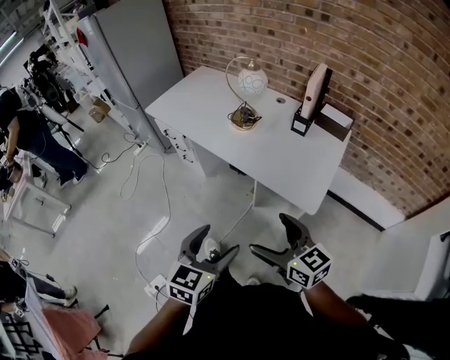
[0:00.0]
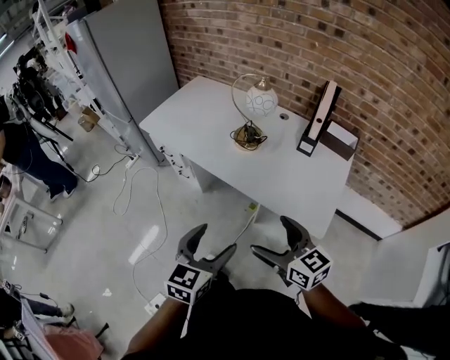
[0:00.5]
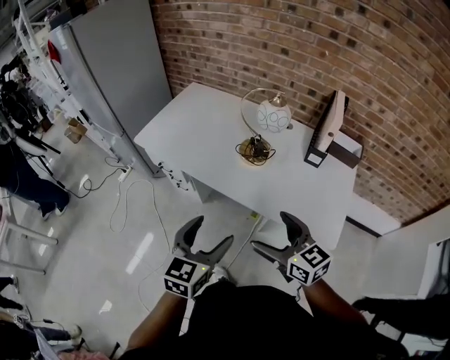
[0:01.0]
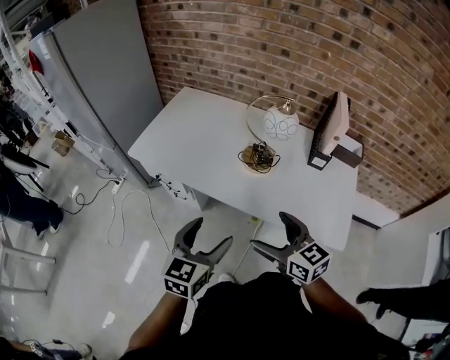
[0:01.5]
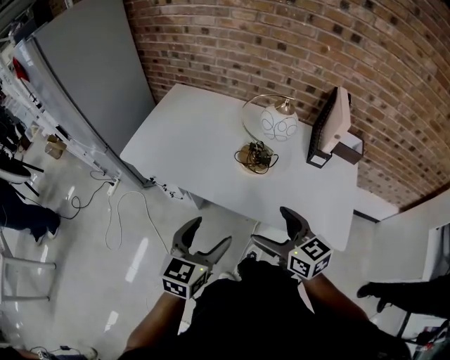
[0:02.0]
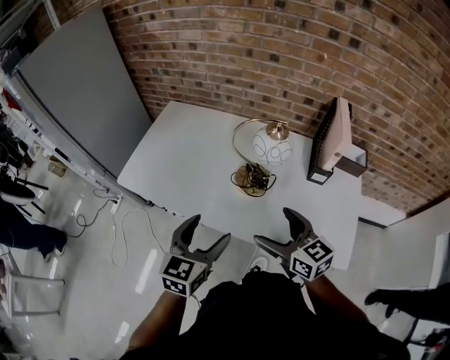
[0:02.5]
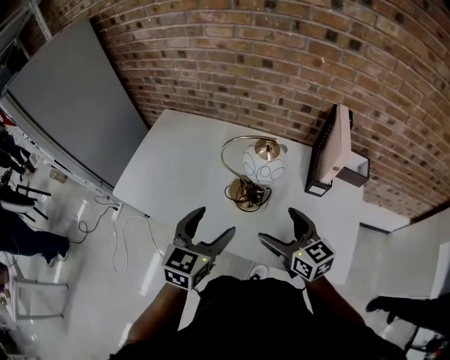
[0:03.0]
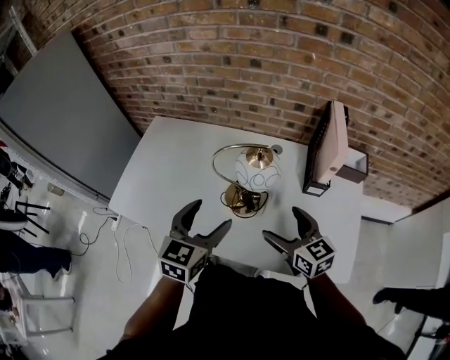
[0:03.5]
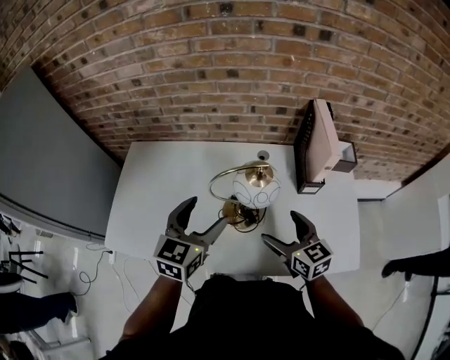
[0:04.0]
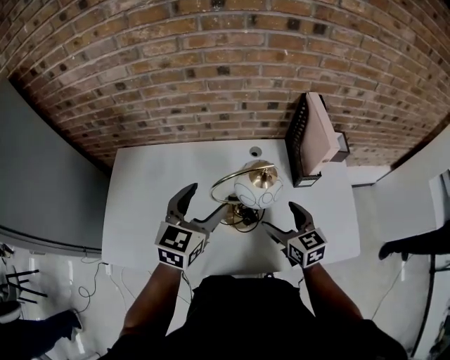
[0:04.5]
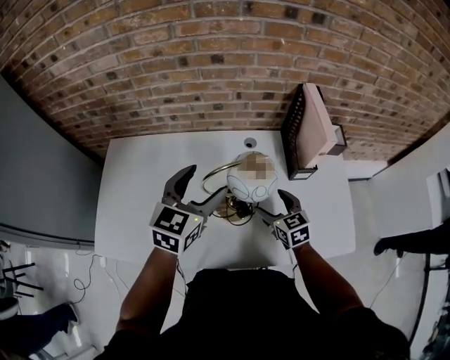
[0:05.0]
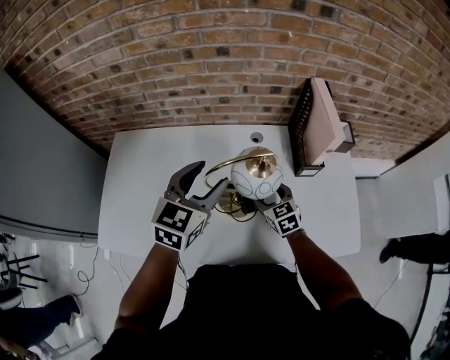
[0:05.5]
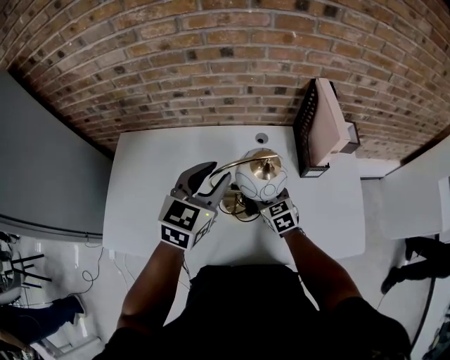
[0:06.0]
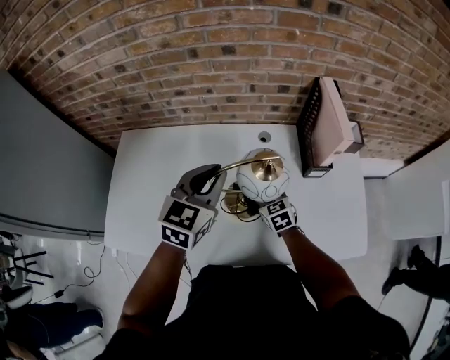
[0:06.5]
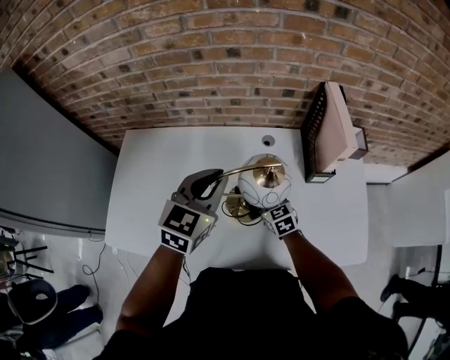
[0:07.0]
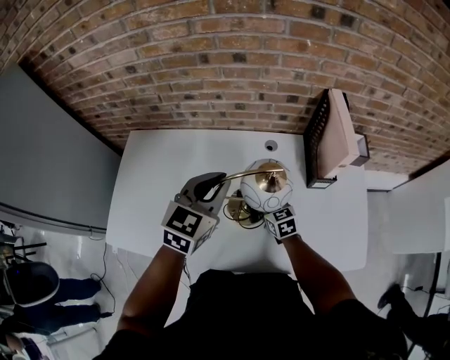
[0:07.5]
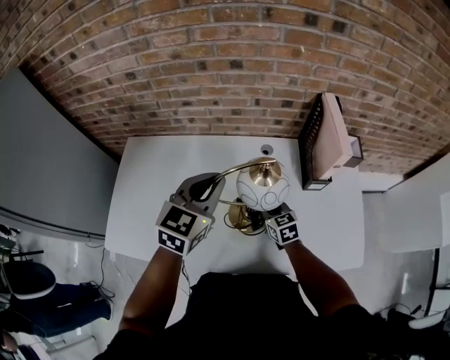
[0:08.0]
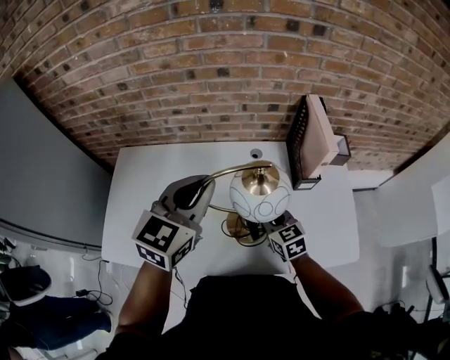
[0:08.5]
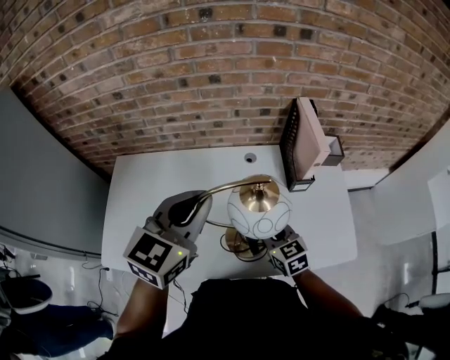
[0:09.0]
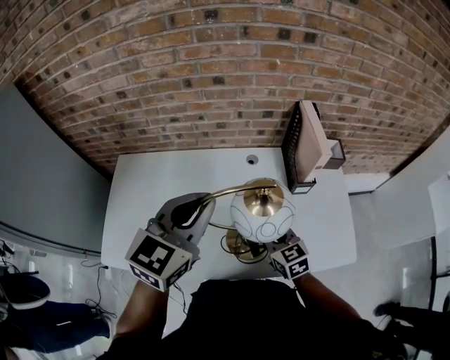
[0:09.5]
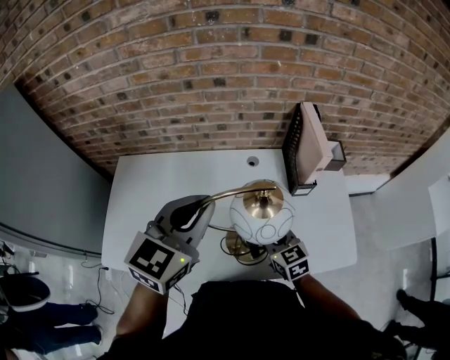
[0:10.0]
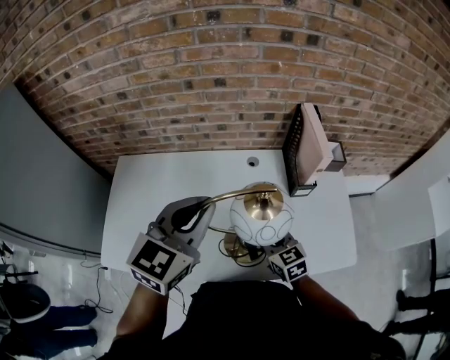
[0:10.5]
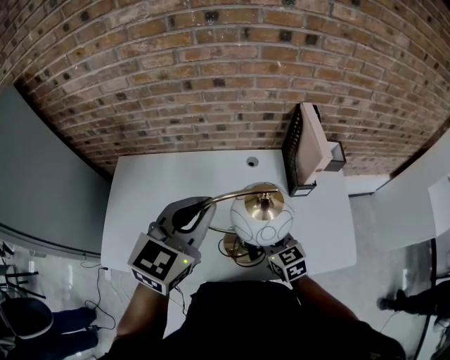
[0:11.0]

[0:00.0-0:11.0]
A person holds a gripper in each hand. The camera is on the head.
0:00.0 to 0:02.0: The two grippers go roughly 35 cm forward and to the left.
0:02.0 to 0:03.5: The right gripper travels forward and to the right by some 20 cm; the left gripper is displaced forward by roughly 25 cm.
0:03.5 to 0:05.5: The right gripper moves downward and forward, about 20 cm, and rotates roughly 30 degrees. The left gripper moves forward, approximately 15 cm.
0:05.5 to 0:07.5: The right gripper shifts by some 5 cm, and closes. Meanwhile the left gripper closes.
0:07.5 to 0:09.0: Both grippers move upward and backward, about 15 cm.
0:09.0 to 0:11.0: Neither gripper changes place.

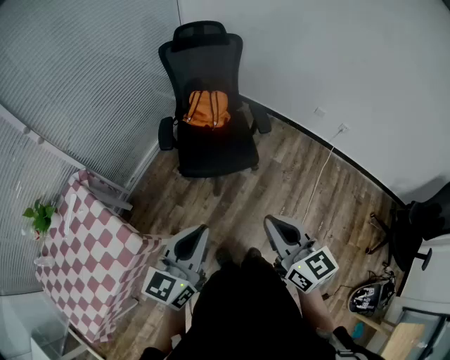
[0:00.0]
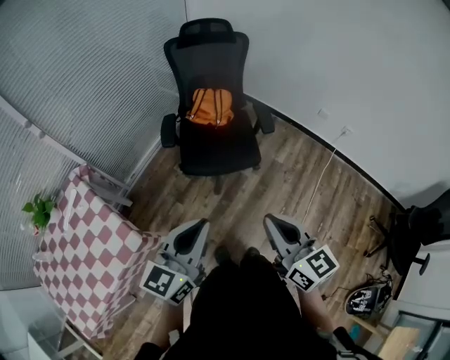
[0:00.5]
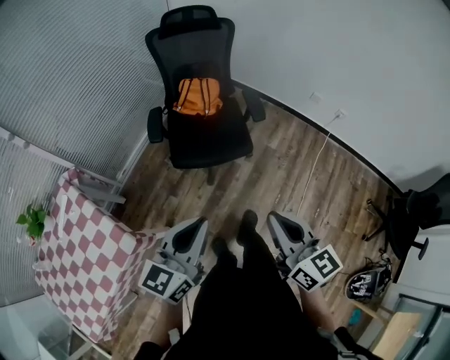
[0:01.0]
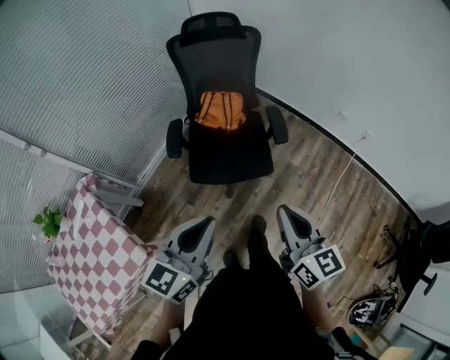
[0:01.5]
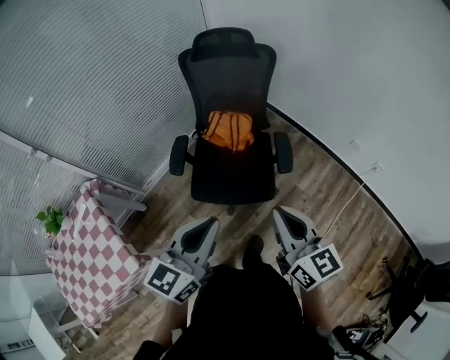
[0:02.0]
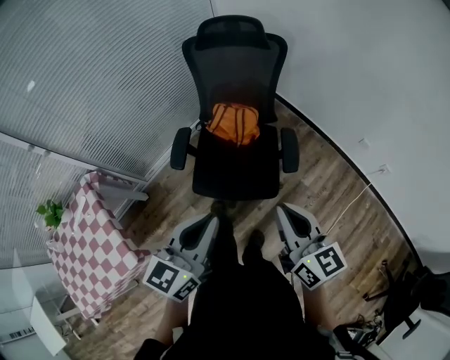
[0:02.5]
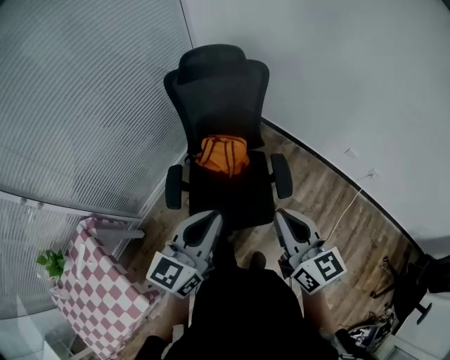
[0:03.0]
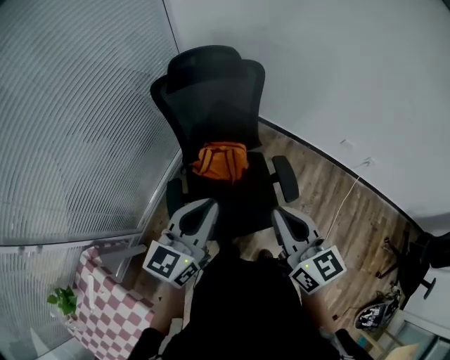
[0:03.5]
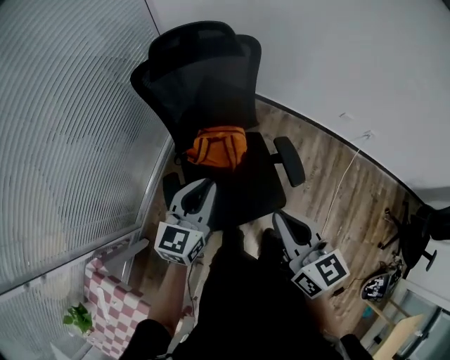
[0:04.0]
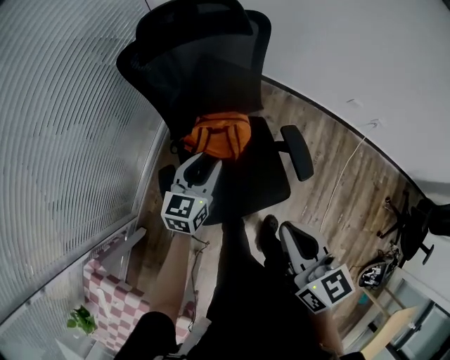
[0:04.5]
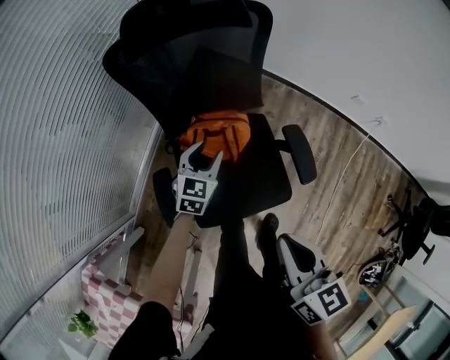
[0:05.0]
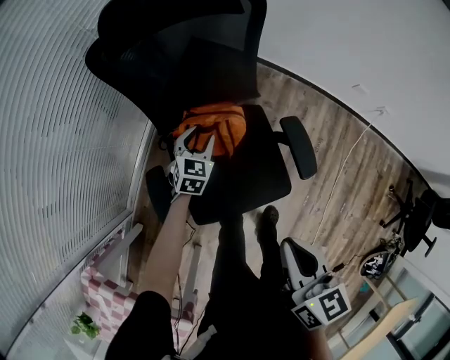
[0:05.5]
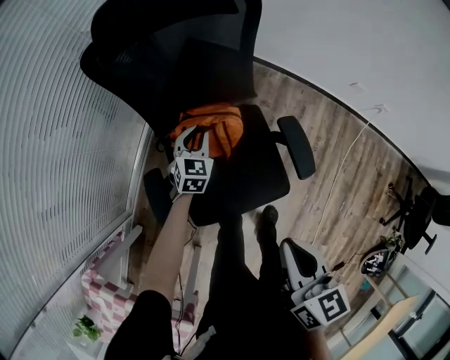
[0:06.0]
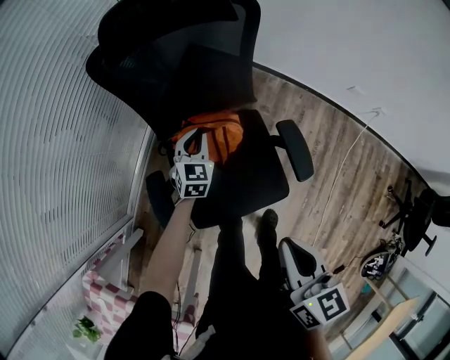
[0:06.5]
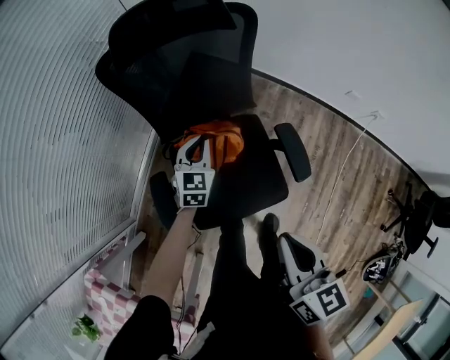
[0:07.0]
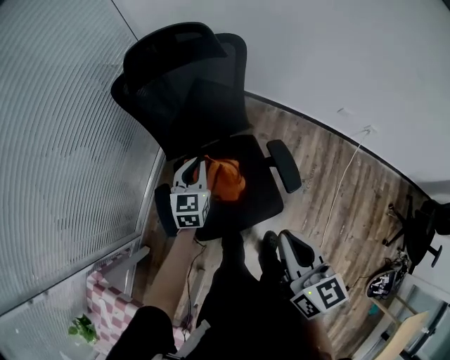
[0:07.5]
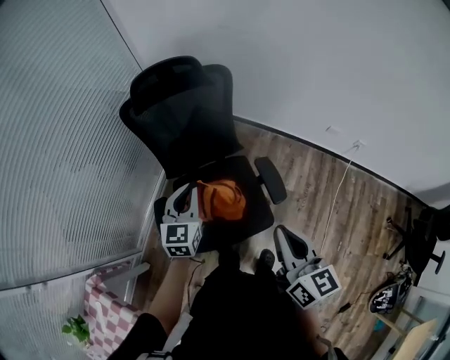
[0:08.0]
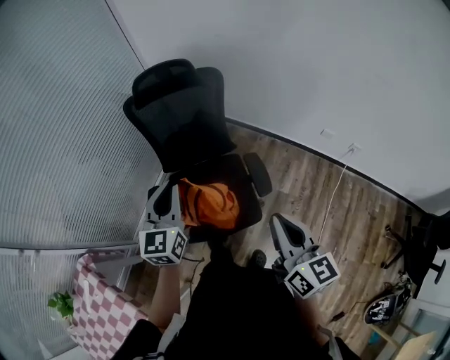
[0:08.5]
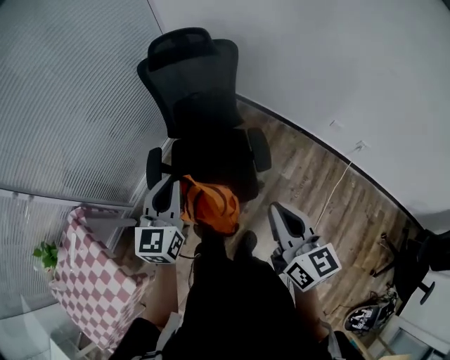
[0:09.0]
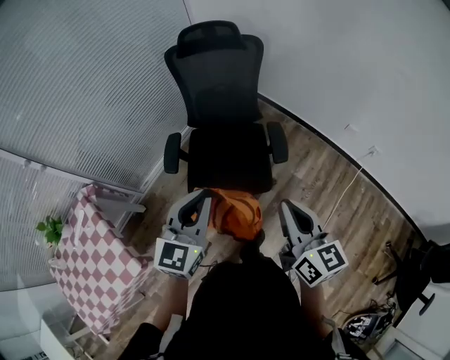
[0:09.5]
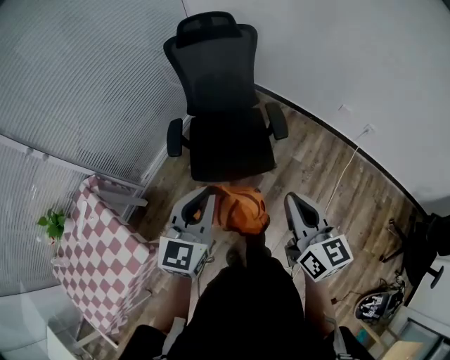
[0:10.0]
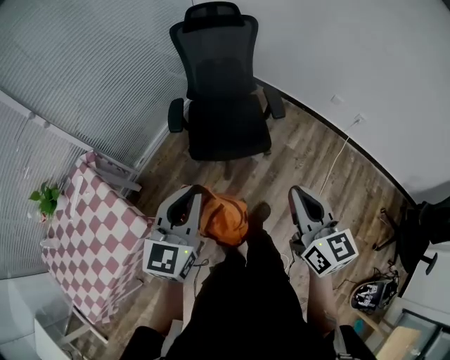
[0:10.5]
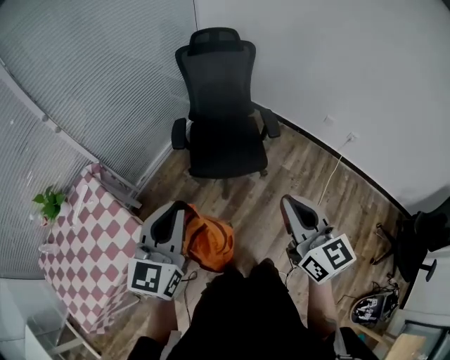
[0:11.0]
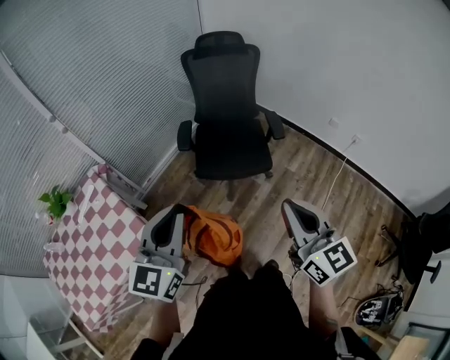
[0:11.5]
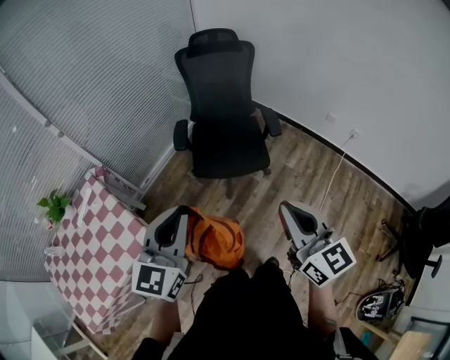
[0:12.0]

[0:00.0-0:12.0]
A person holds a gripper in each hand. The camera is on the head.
0:00.0 to 0:02.0: Both grippers travel together forward, about 25 cm.
0:02.0 to 0:04.0: The left gripper travels forward by some 35 cm, while the right gripper is displaced forward and to the left by approximately 25 cm, and changes its angle by some 20 degrees.
0:04.0 to 0:06.0: The right gripper shifts roughly 10 cm downward. The left gripper is displaced downward and forward by approximately 35 cm, changes its angle by about 30 degrees, and opens, then closes once more.
0:06.0 to 0:08.0: The left gripper goes about 30 cm upward and backward, and swivels some 20 degrees, while the right gripper travels upward and to the right by roughly 15 cm, and changes its angle by about 20 degrees.
0:08.0 to 0:10.0: The left gripper goes some 40 cm backward. The right gripper goes some 30 cm backward.
0:10.0 to 0:12.0: The two grippers go roughly 20 cm backward and to the left.

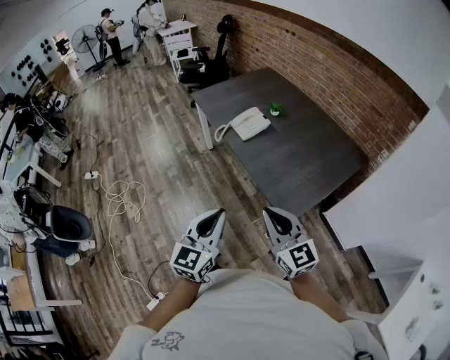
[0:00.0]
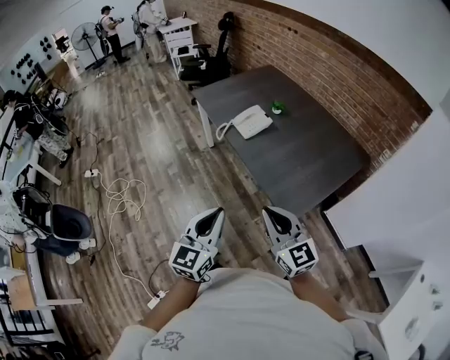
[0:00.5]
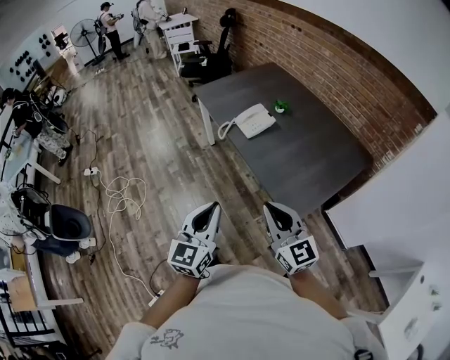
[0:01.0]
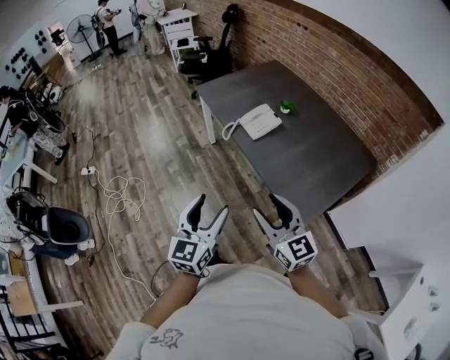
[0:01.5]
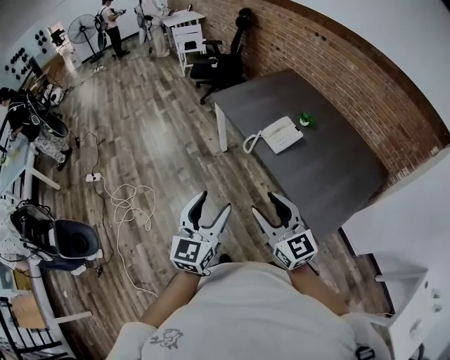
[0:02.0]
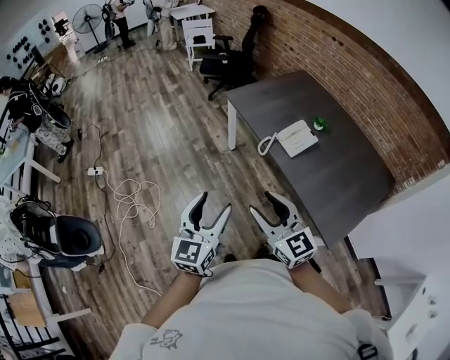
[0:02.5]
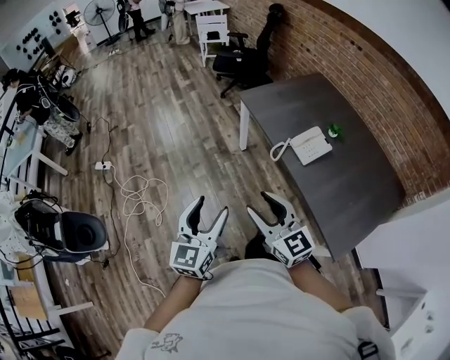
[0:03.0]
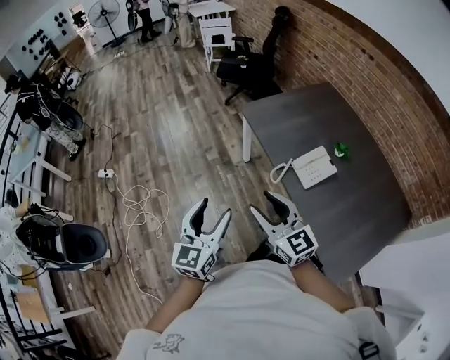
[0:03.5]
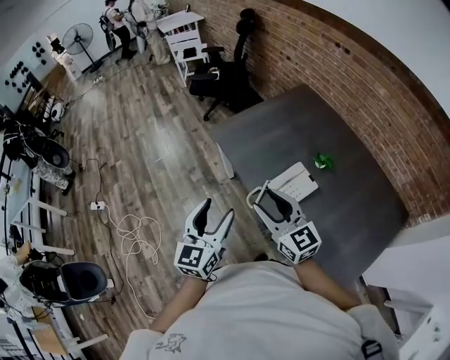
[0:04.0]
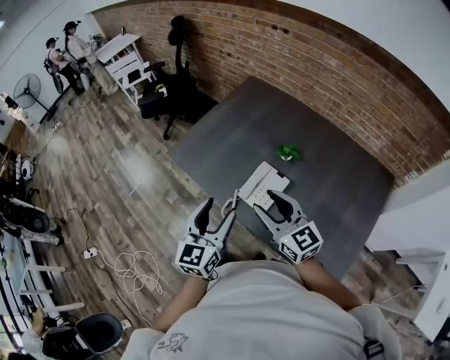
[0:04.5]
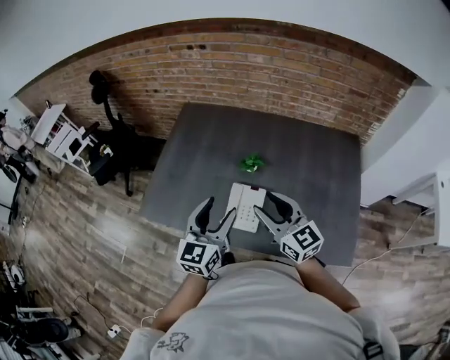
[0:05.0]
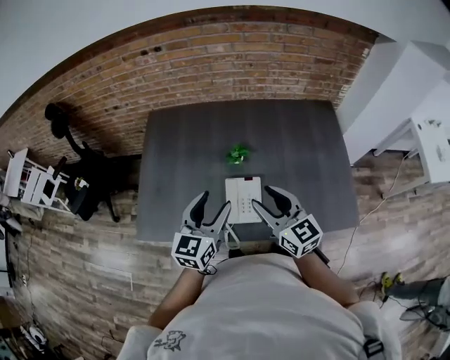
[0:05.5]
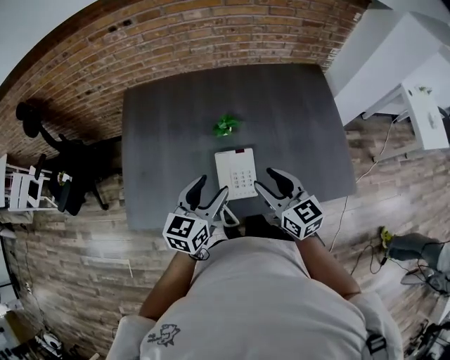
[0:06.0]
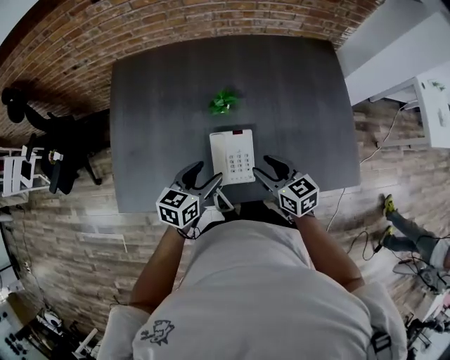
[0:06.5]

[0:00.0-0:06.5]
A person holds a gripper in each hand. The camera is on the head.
0:00.0 to 0:02.0: Both grippers move to the left and forward, roughly 25 cm. The right gripper opens its fingers; the left gripper opens up.
0:02.0 to 0:04.5: The two grippers travel together, forward and to the right, approximately 40 cm.
0:04.5 to 0:06.5: Both grippers move downward, roughly 20 cm. The right gripper changes its angle by roughly 50 degrees; the left gripper turns by roughly 70 degrees.
